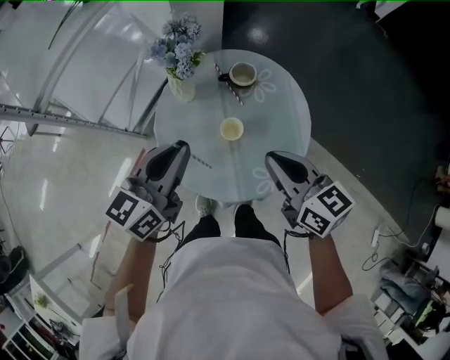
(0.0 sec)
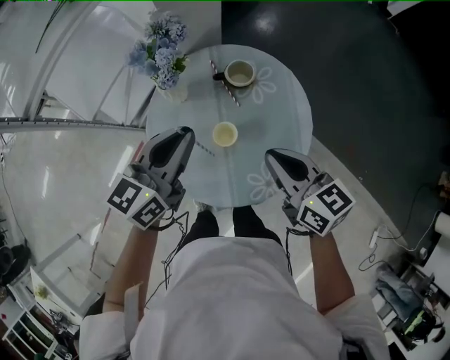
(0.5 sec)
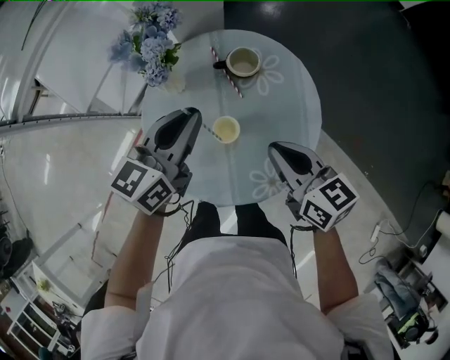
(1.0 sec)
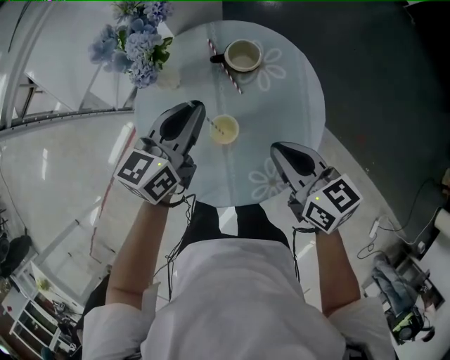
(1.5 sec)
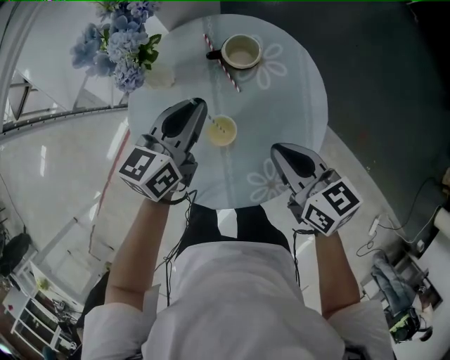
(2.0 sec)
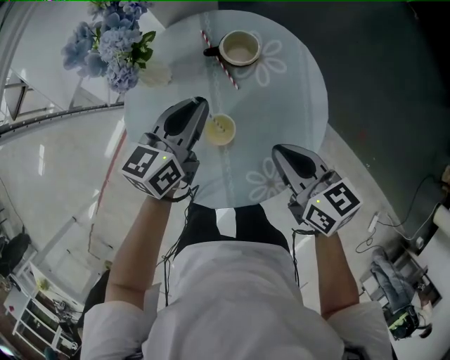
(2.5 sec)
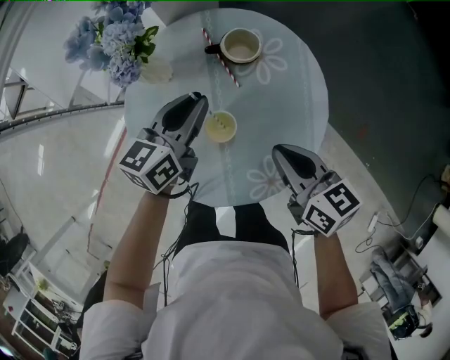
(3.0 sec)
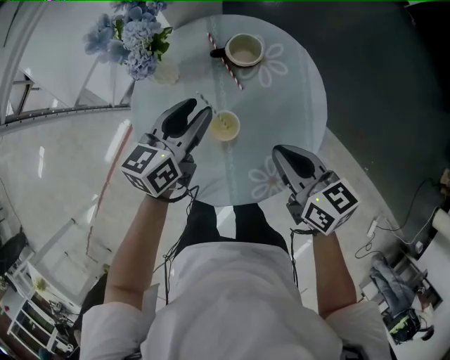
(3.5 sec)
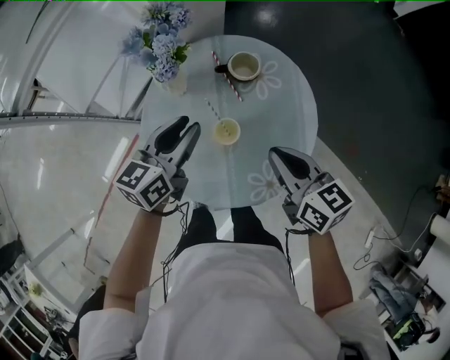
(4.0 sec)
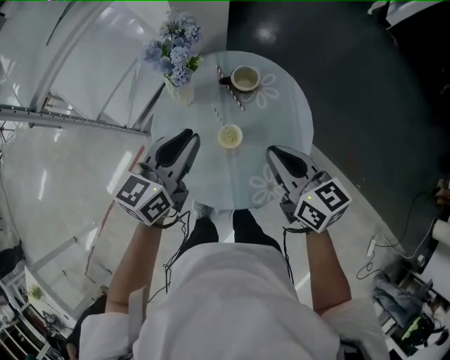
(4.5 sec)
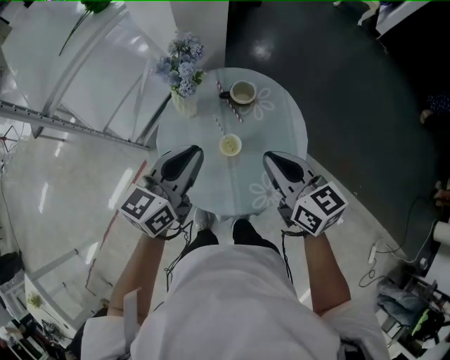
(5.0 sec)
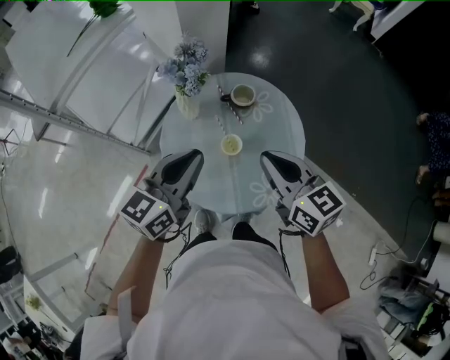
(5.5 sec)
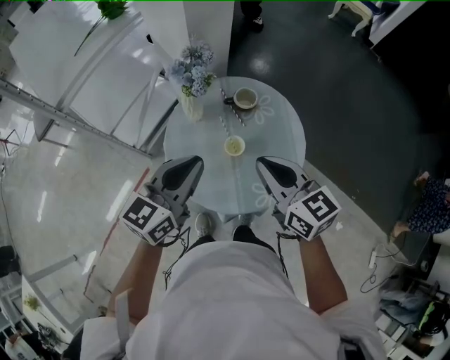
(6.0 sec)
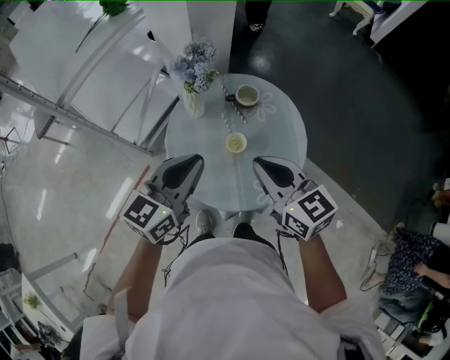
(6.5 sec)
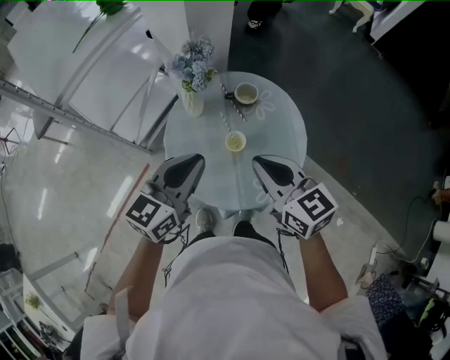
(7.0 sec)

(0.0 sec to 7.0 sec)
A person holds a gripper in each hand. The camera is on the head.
0.0 sec - 2.0 sec: The left gripper goes approximately 20 cm downward, forward and to the right; the right gripper moves downward and forward, about 15 cm.
2.0 sec - 3.5 sec: The left gripper opens its fingers.
3.5 sec - 5.0 sec: The right gripper shifts approximately 15 cm upward, while the left gripper is displaced upward and backward by roughly 20 cm, and closes up.
5.0 sec - 7.0 sec: The right gripper changes place by approximately 5 cm; the left gripper travels backward by roughly 5 cm.

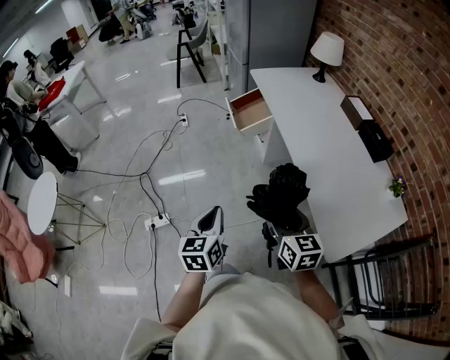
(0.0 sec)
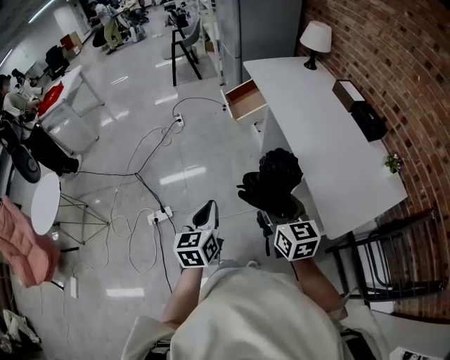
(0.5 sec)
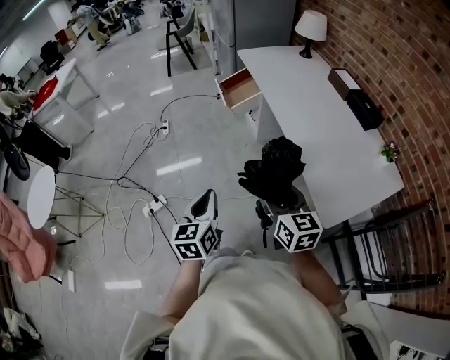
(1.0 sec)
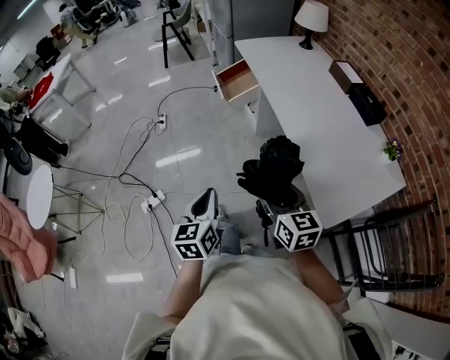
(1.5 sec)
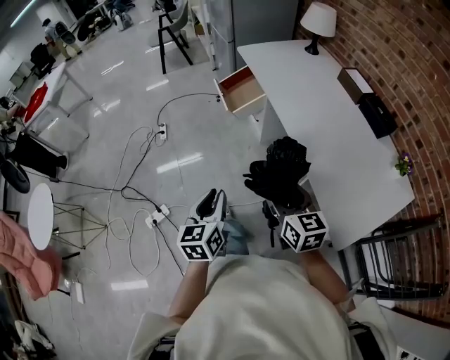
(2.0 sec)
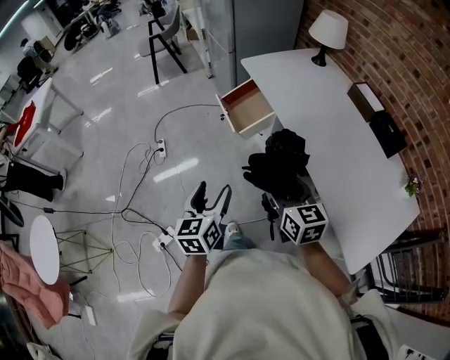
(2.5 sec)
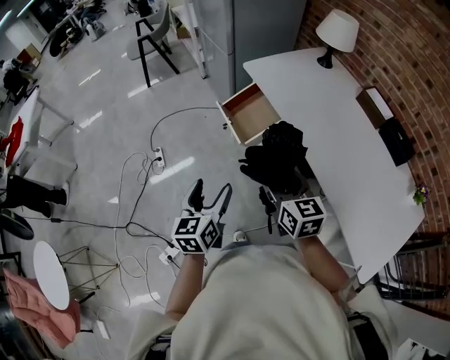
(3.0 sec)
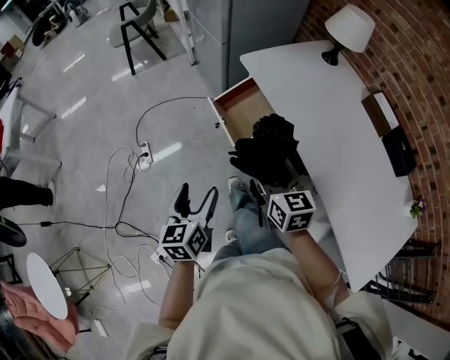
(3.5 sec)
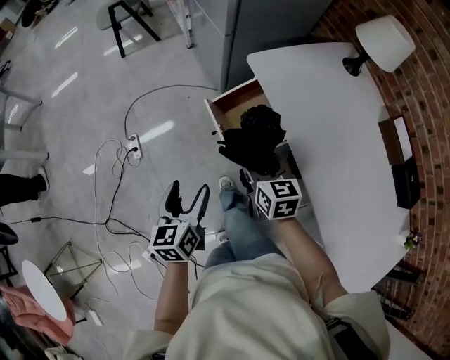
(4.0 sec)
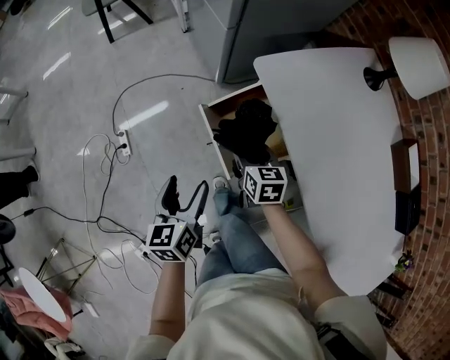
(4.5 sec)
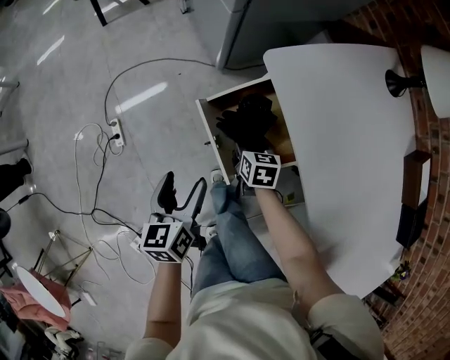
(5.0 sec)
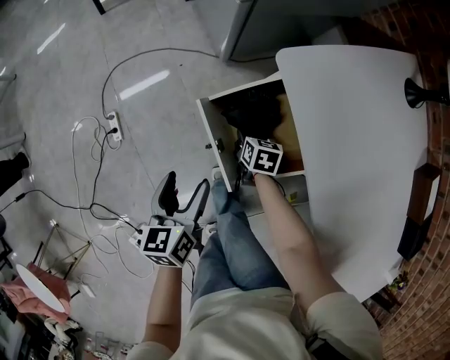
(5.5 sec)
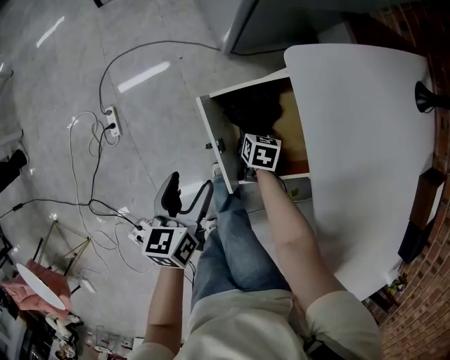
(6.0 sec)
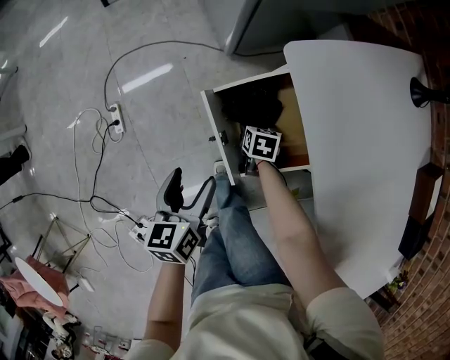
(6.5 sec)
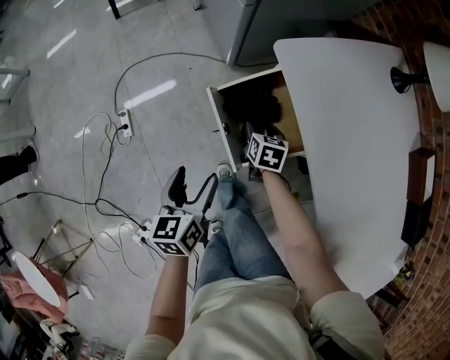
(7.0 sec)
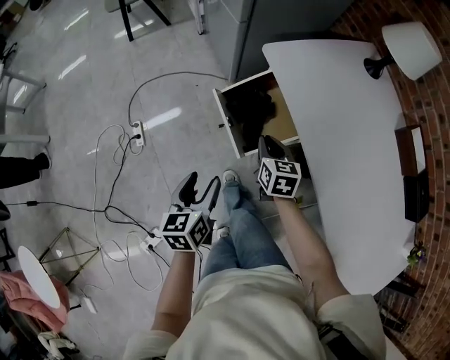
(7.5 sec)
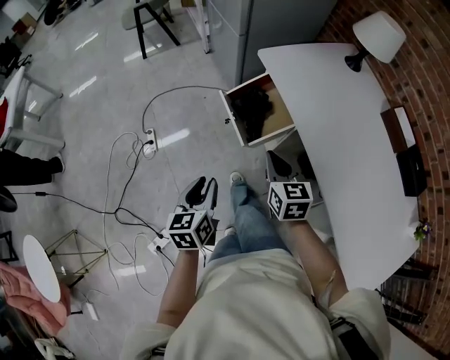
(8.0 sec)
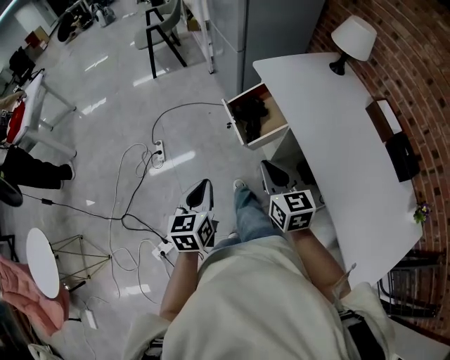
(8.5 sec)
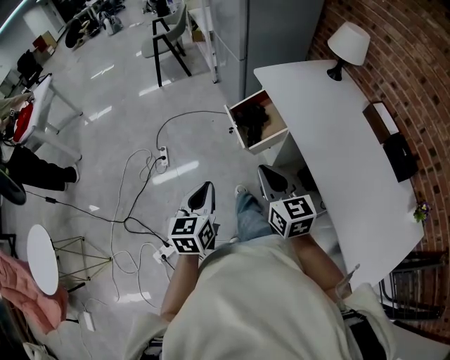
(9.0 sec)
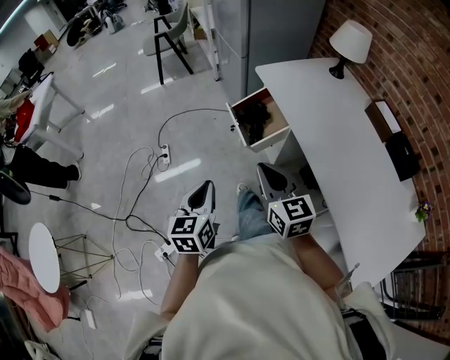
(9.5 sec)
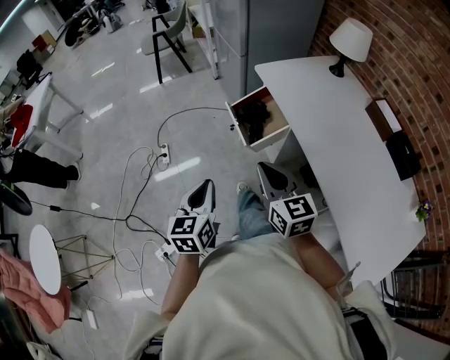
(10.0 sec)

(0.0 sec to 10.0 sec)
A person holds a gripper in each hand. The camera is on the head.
0.0 sec - 2.0 sec: The right gripper ends up some 5 cm from where it was, while the left gripper changes place by approximately 5 cm.
2.0 sec - 4.0 sec: The two grippers travel together, forward, some 50 cm. The left gripper opens.
4.0 sec - 6.0 sec: The right gripper goes roughly 40 cm downward and forward, and turns by approximately 30 degrees. Meanwhile the left gripper is displaced downward and forward by roughly 25 cm.
6.0 sec - 8.0 sec: The right gripper goes approximately 50 cm upward and backward, tilts its fingers about 30 degrees upward, and closes up, while the left gripper travels backward and upward by approximately 30 cm, and closes its fingers.
8.0 sec - 10.0 sec: The grippers both shift backward and upward by about 15 cm.

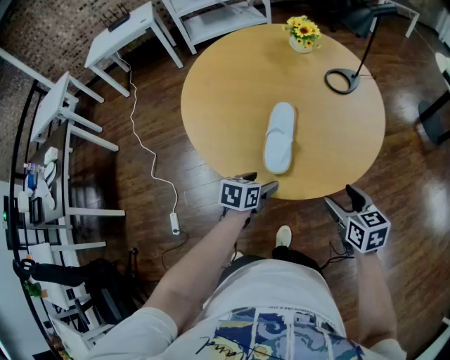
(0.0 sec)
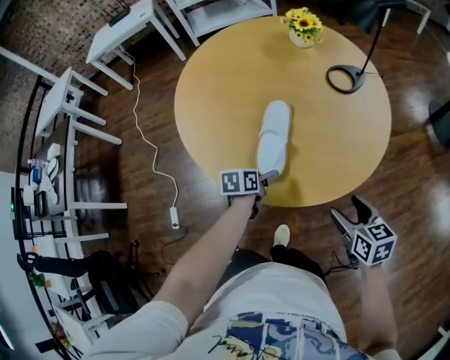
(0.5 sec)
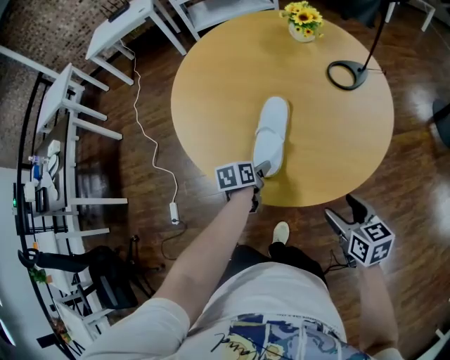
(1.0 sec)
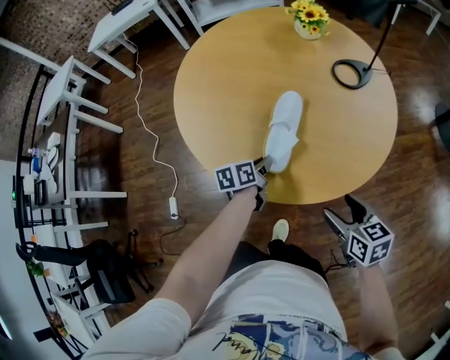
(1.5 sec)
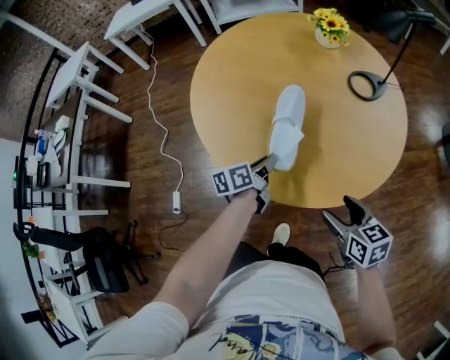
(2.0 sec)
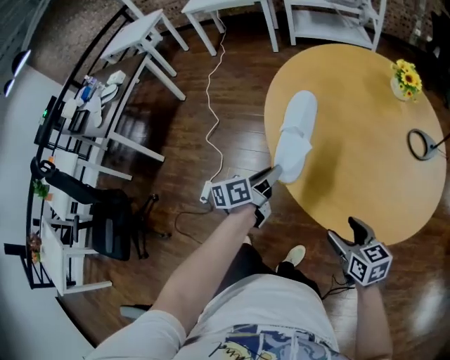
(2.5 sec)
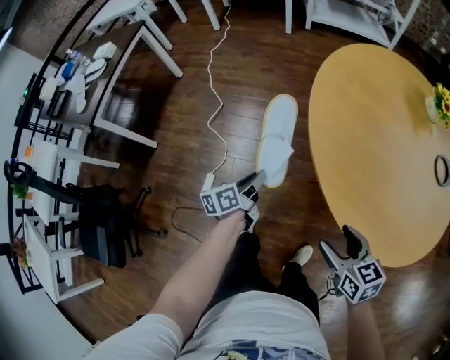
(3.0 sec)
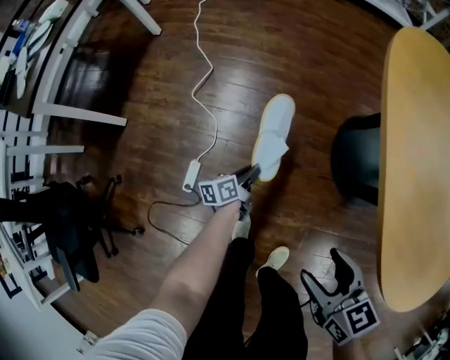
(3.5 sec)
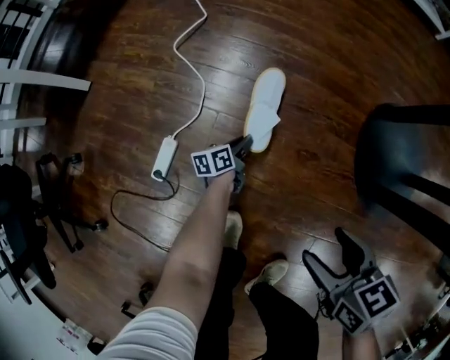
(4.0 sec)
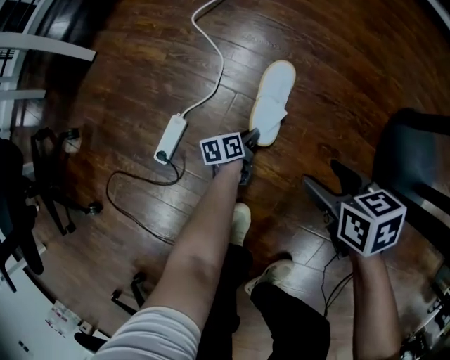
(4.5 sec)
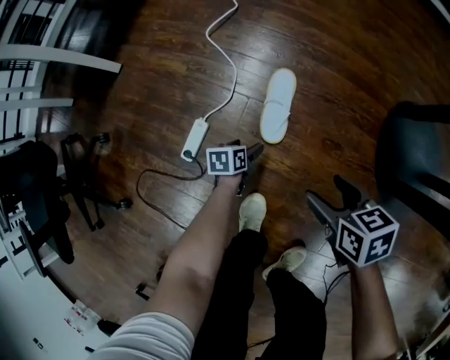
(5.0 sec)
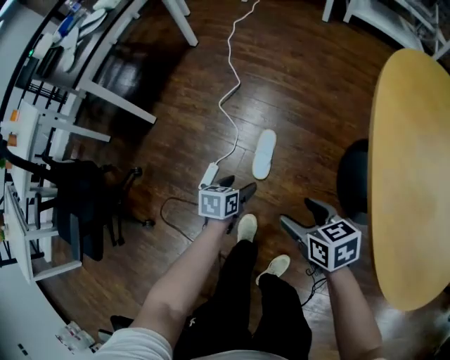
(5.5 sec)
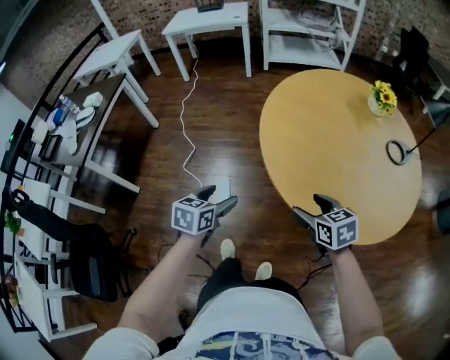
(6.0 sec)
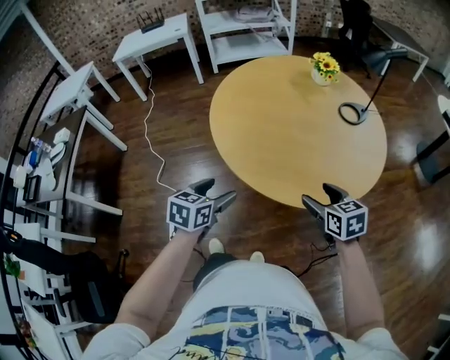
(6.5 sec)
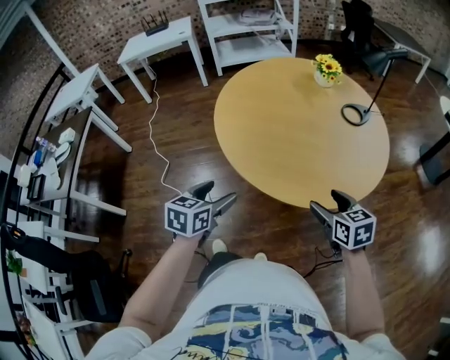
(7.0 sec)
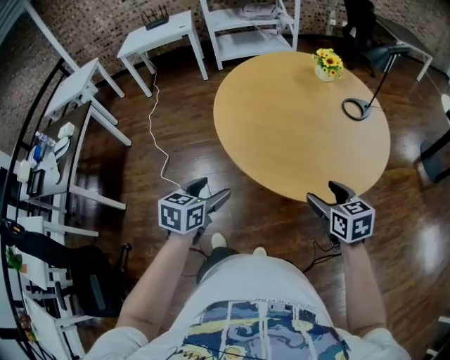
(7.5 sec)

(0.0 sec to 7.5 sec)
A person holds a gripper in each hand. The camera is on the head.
0.0 sec - 2.0 sec: The left gripper travels forward by approximately 10 cm, changes its angle by about 40 degrees, and closes. Meanwhile the right gripper reaches approximately 10 cm to the right, then returns.
2.0 sec - 4.0 sec: Both grippers are carried roughly 60 cm. The right gripper changes its angle by some 30 degrees. The left gripper moves downward, about 80 cm, and turns by roughly 30 degrees.
4.0 sec - 5.5 sec: The left gripper travels upward by about 50 cm, rotates about 30 degrees, and opens. The right gripper moves upward, approximately 30 cm.
5.5 sec - 7.5 sec: The left gripper shifts about 50 cm upward, and changes its angle by roughly 40 degrees, while the right gripper ends up some 60 cm from where it was, and swivels some 40 degrees.

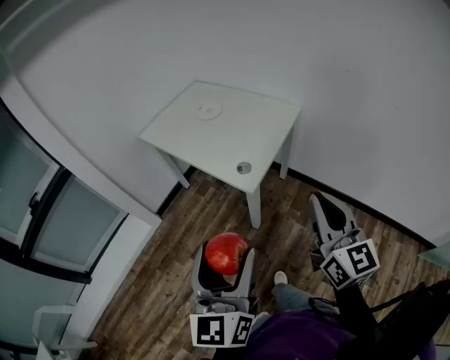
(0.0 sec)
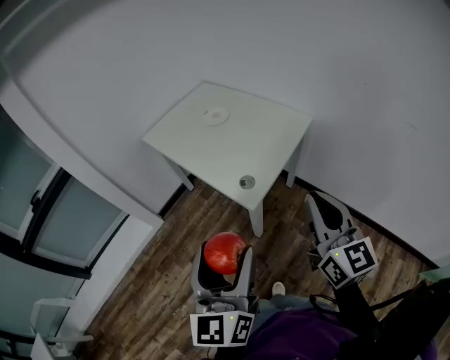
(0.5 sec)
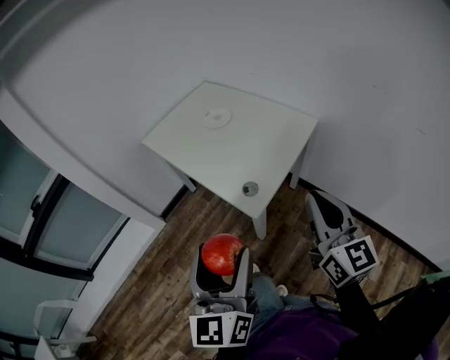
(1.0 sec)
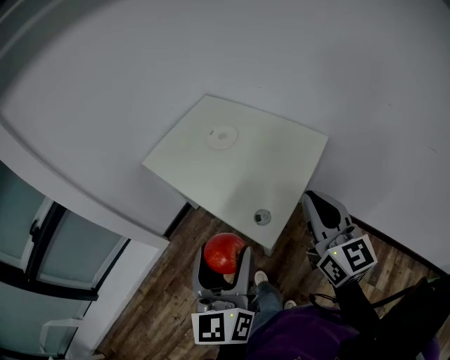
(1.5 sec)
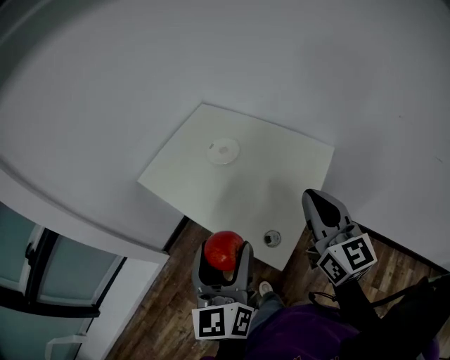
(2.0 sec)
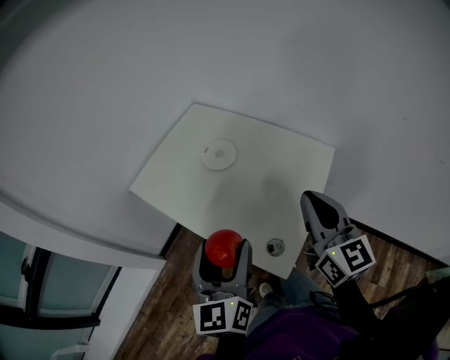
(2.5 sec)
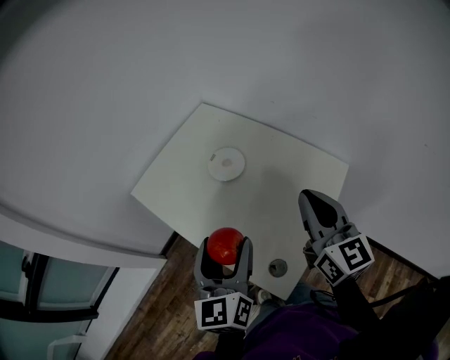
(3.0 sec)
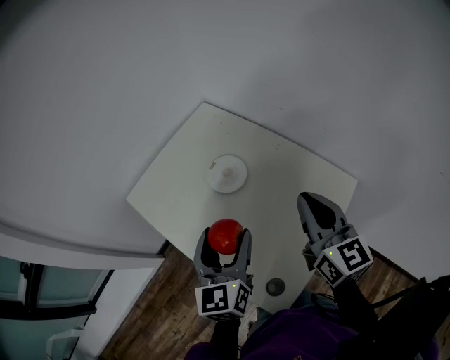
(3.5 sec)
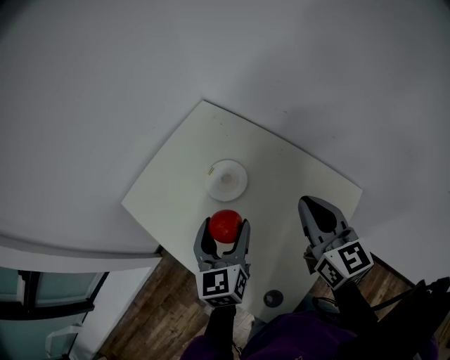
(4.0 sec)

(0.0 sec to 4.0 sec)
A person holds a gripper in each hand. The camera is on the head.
0.0 sec - 2.0 sec: Both grippers move forward, some 35 cm.
2.0 sec - 4.0 sec: The left gripper heads forward and downward, covering approximately 35 cm, while the right gripper is displaced forward by about 25 cm.
